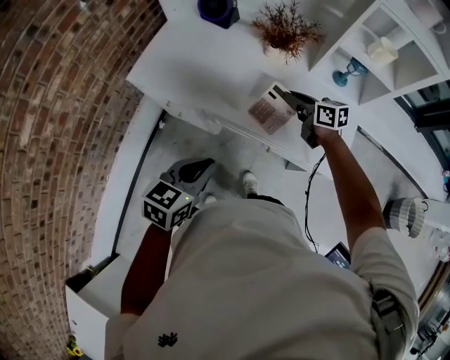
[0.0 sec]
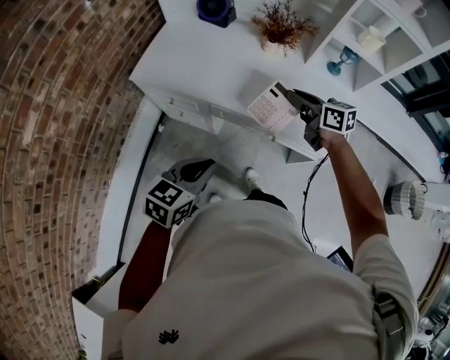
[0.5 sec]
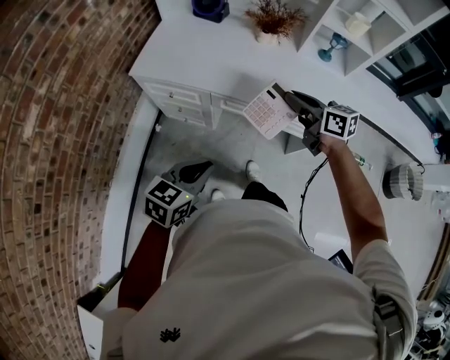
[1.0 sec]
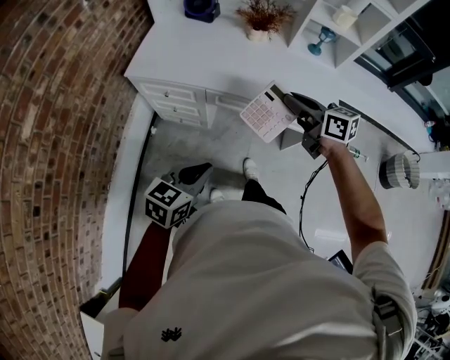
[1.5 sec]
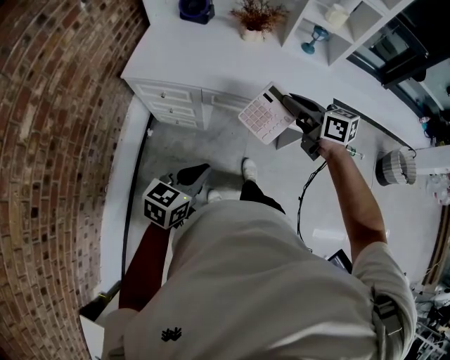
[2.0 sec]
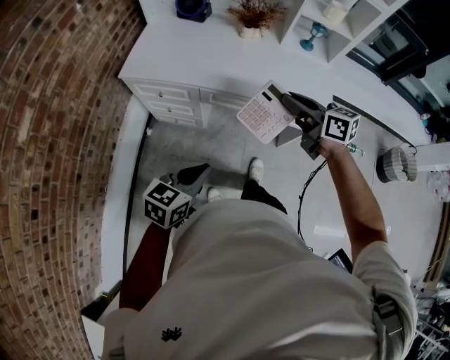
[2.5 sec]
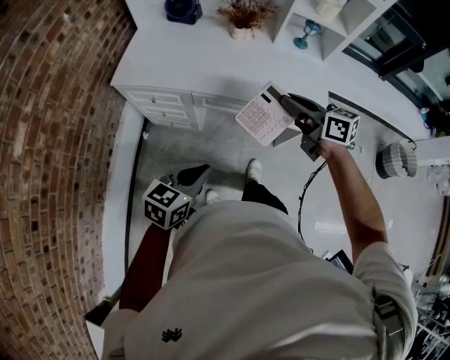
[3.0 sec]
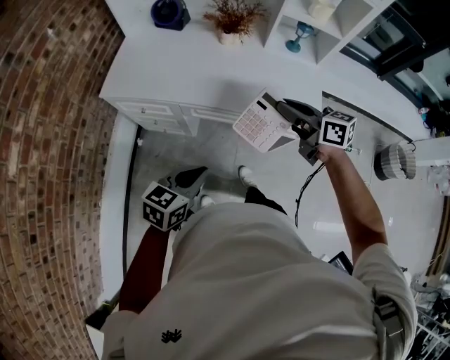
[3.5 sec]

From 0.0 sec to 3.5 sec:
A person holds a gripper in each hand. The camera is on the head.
From 0.0 sec to 2.0 sec: The left gripper heads backward and to the left, covering roughly 20 cm. Meanwhile the right gripper heads backward and upward, covering some 30 cm.
From 2.0 sec to 3.5 sec: The left gripper goes about 10 cm to the right and forward; the right gripper is displaced to the right by roughly 5 cm.

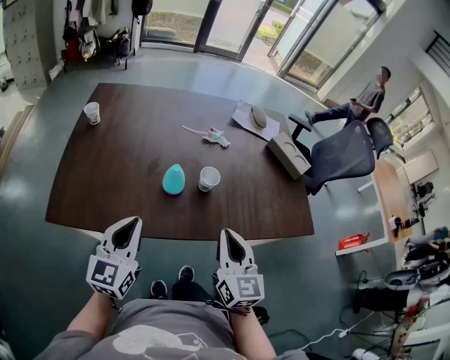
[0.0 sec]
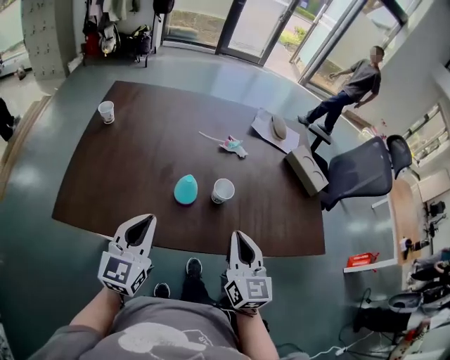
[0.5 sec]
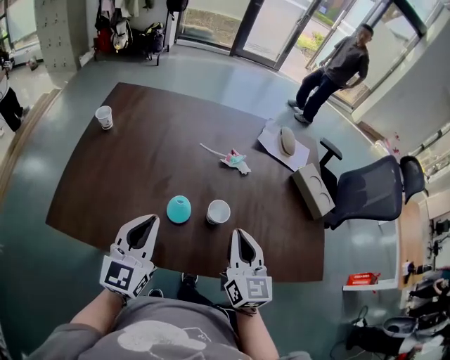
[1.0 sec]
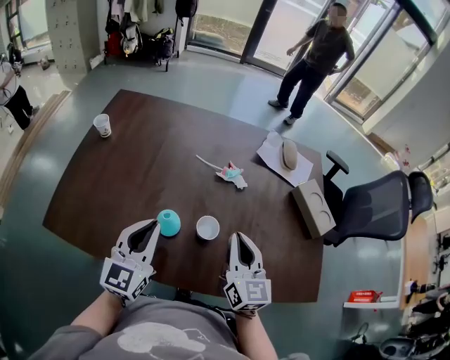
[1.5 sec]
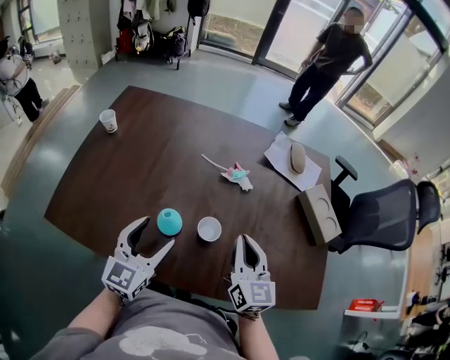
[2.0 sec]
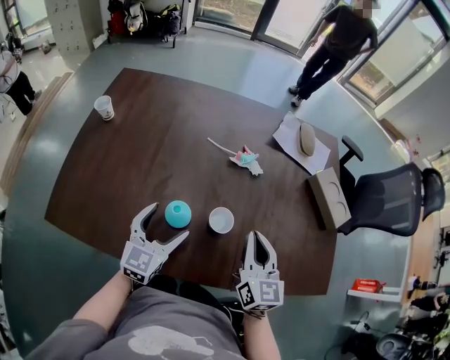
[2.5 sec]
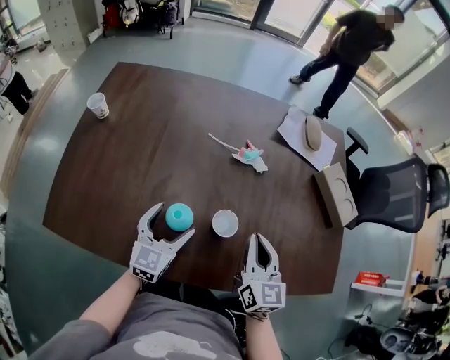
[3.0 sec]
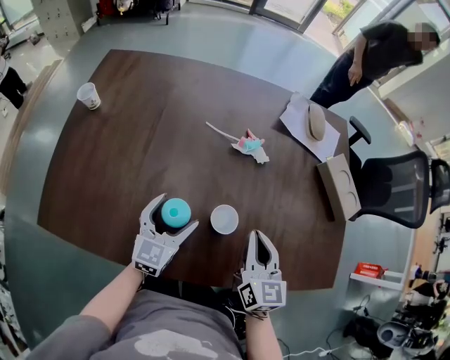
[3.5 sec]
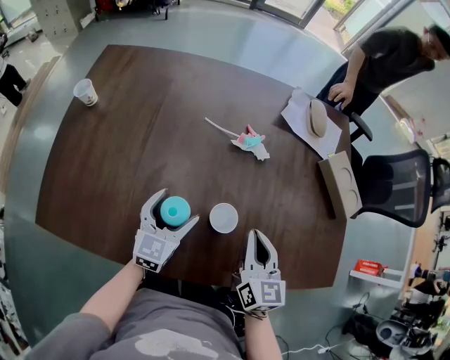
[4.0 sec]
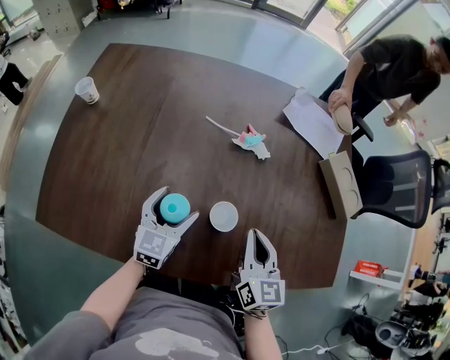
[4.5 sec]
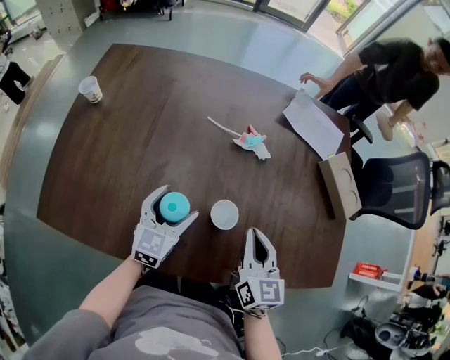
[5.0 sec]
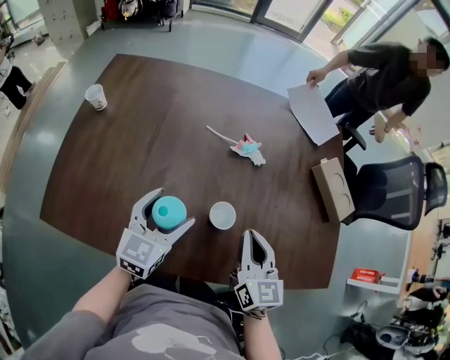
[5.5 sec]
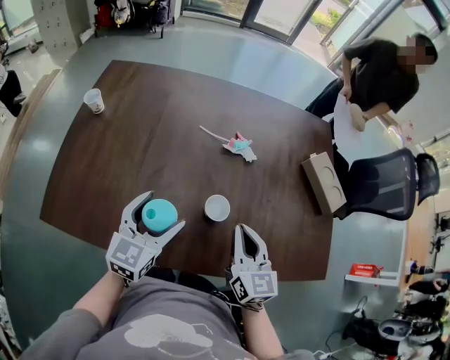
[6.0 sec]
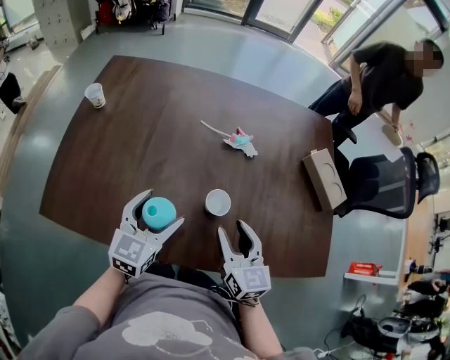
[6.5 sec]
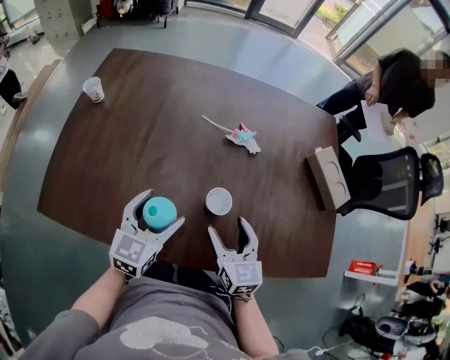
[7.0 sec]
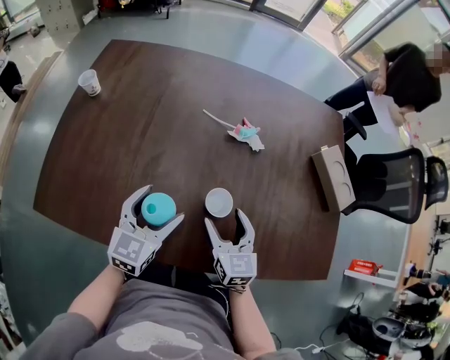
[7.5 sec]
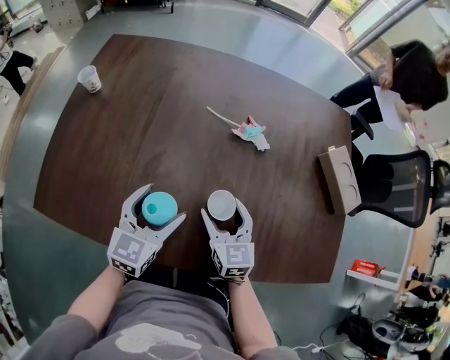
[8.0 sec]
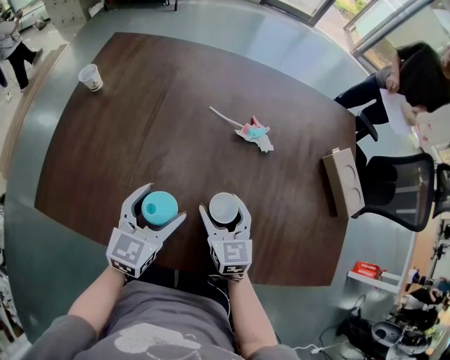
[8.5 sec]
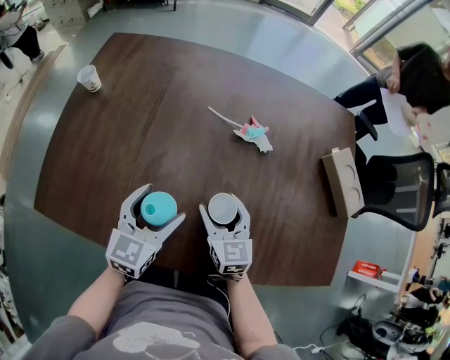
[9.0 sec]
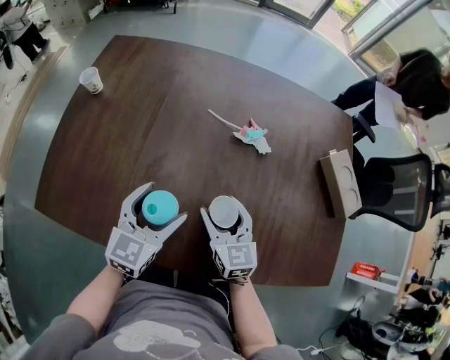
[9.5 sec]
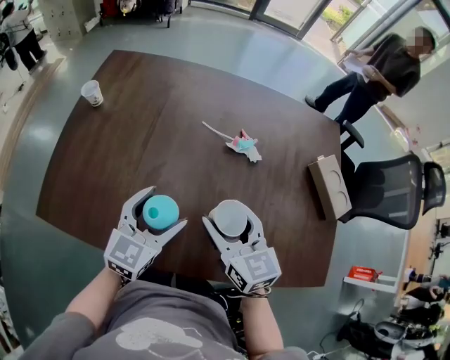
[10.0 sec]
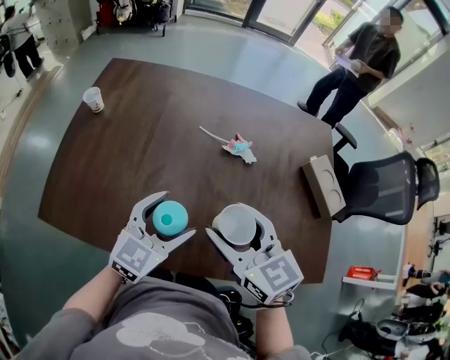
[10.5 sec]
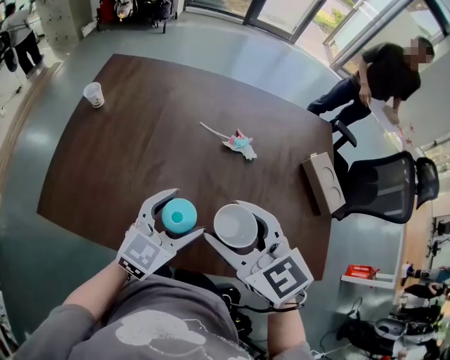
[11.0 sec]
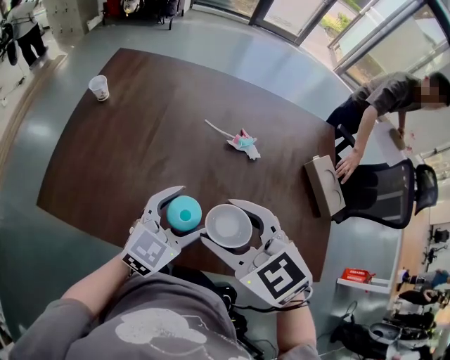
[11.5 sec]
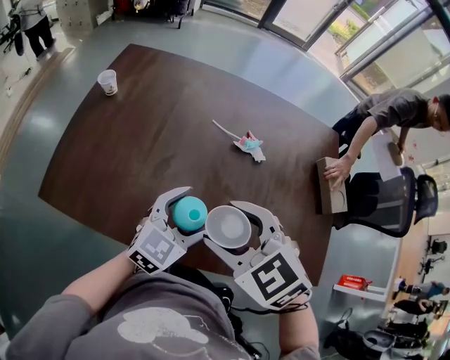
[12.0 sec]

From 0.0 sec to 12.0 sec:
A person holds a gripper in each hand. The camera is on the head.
From 0.0 sec to 2.0 sec: The left gripper goes some 20 cm forward and to the right, and opens up; the right gripper is displaced forward by about 20 cm.
From 2.0 sec to 4.0 sec: The right gripper goes some 5 cm downward, while the left gripper moves downward and forward, approximately 15 cm.
From 4.0 sec to 6.0 sec: The left gripper travels upward and backward by some 10 cm. The right gripper shifts by roughly 5 cm.
From 6.0 sec to 8.0 sec: The left gripper travels downward by roughly 5 cm, while the right gripper travels downward, to the left and forward by approximately 15 cm, and opens.
From 8.0 sec to 10.0 sec: The right gripper is displaced upward by some 15 cm, while the left gripper shifts some 5 cm upward.
From 10.0 sec to 12.0 sec: The right gripper heads upward and backward, covering approximately 10 cm, and changes its angle by roughly 40 degrees. The left gripper is displaced to the right by roughly 5 cm.

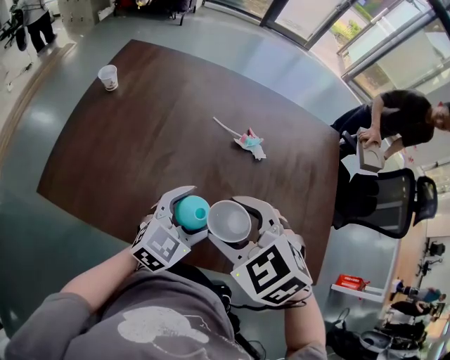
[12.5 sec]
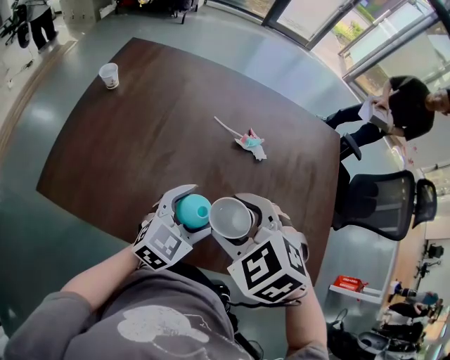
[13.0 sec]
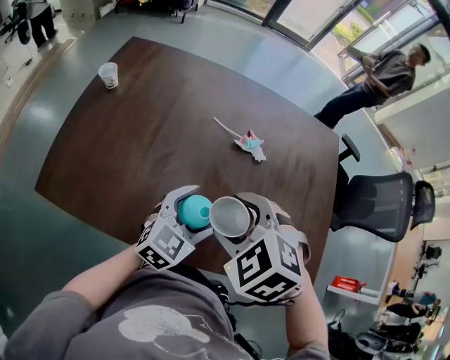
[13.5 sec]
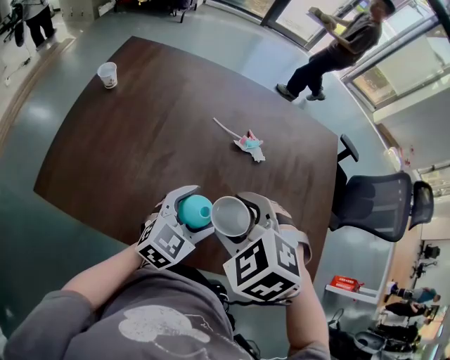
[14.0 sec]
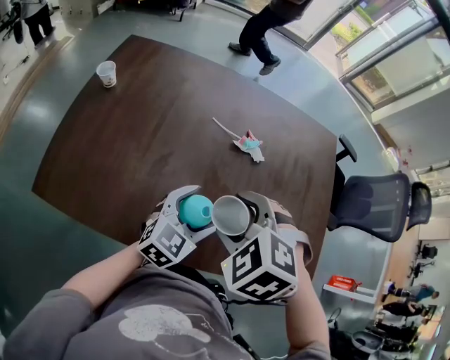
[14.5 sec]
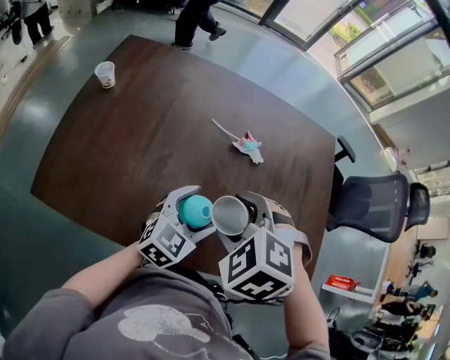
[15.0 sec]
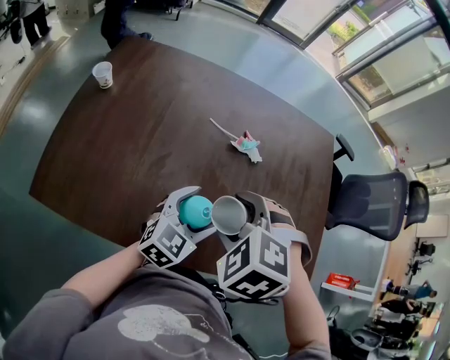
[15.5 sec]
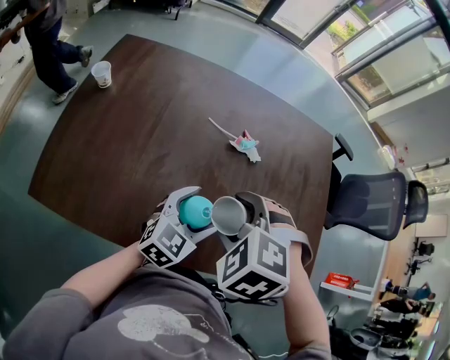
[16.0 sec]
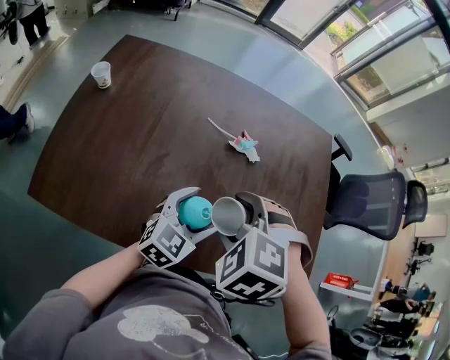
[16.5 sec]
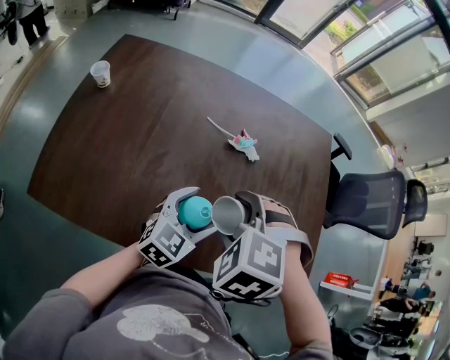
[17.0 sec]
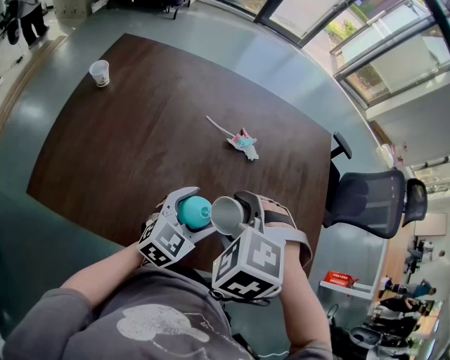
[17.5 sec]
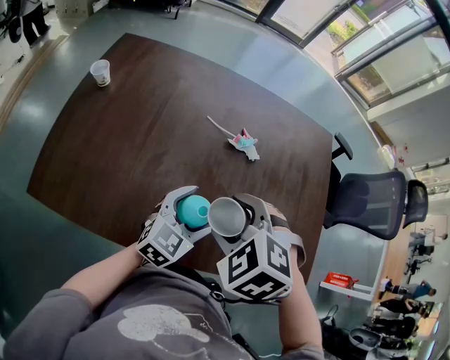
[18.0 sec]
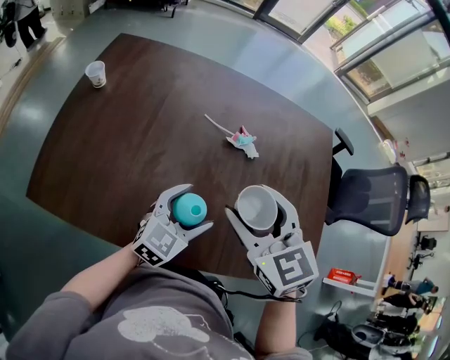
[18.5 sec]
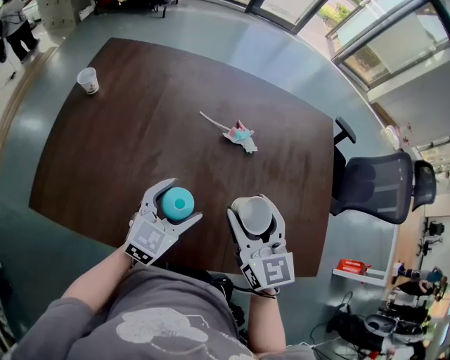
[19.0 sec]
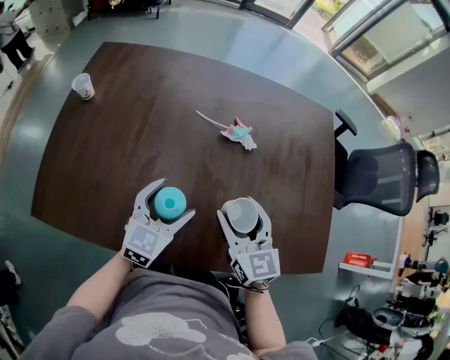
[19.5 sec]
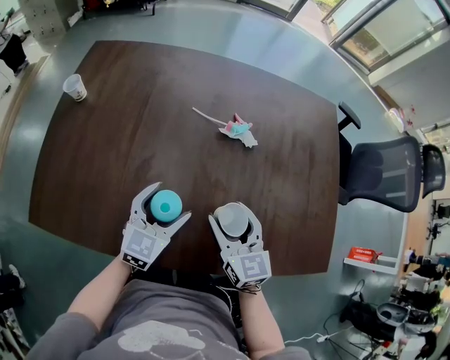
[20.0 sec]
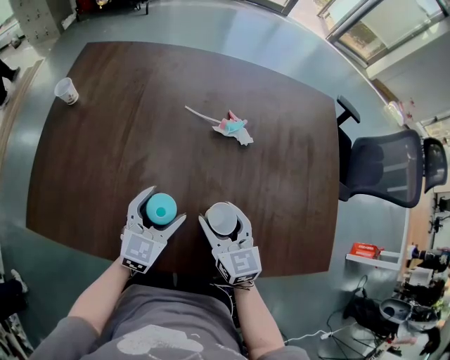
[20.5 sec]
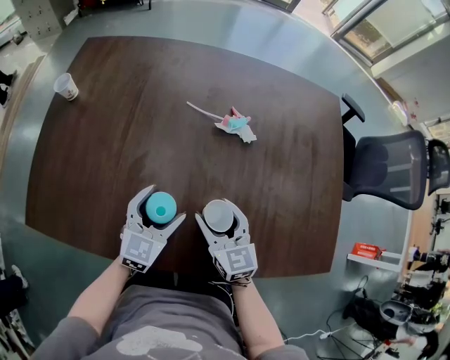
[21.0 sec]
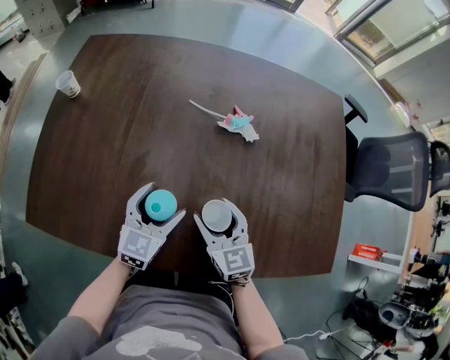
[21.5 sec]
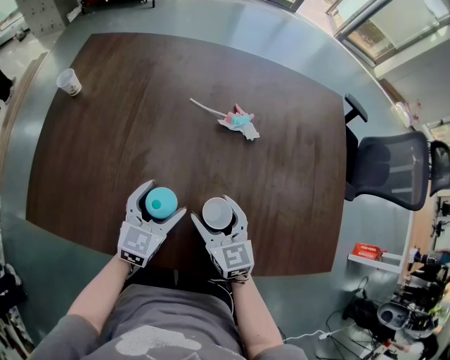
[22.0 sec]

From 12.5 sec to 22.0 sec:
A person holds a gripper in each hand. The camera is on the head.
From 12.5 sec to 14.5 sec: The grippers move only a little.
From 14.5 sec to 18.0 sec: There are only small adjustments of the grippers.
From 18.0 sec to 20.0 sec: The right gripper shifts approximately 10 cm downward and to the right, and angles its fingers upward, by roughly 50 degrees. Meanwhile the left gripper moves to the left, approximately 5 cm.
From 20.0 sec to 22.0 sec: The right gripper goes some 5 cm downward.

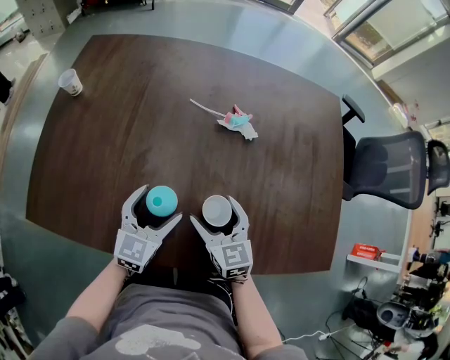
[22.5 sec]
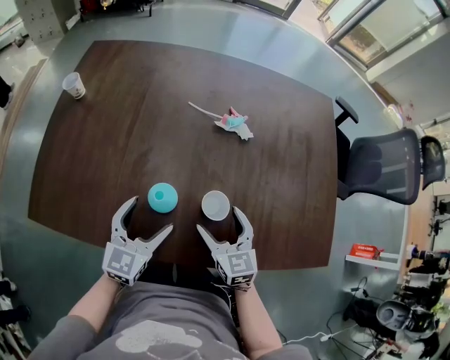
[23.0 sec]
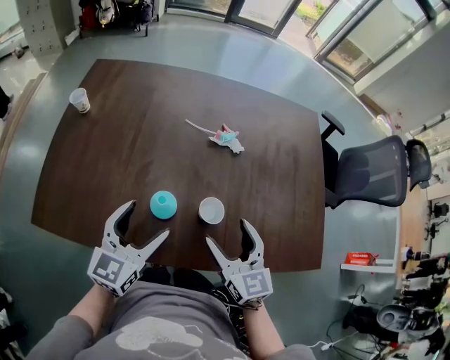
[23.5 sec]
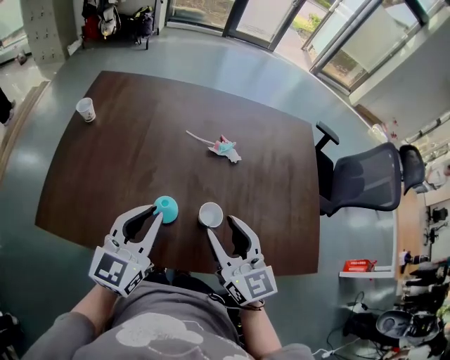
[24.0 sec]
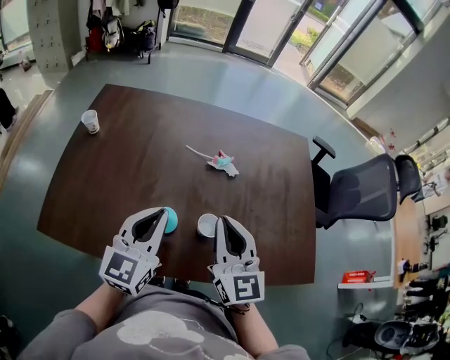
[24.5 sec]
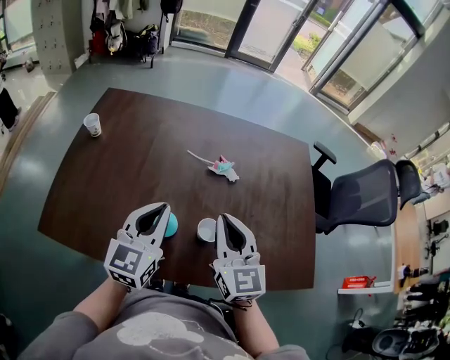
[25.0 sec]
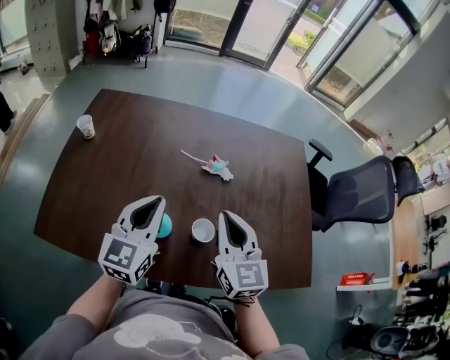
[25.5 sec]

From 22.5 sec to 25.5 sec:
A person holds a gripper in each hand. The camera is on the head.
From 22.5 sec to 24.0 sec: Both grippers travel together upward, approximately 20 cm. The left gripper closes its fingers. The right gripper closes its fingers.
From 24.0 sec to 25.5 sec: Both grippers move forward, roughly 5 cm. The right gripper closes up.
